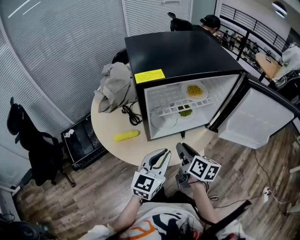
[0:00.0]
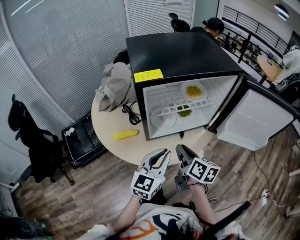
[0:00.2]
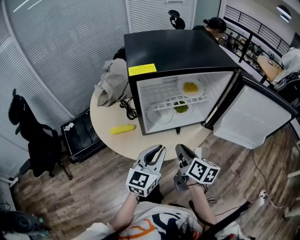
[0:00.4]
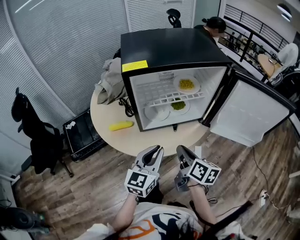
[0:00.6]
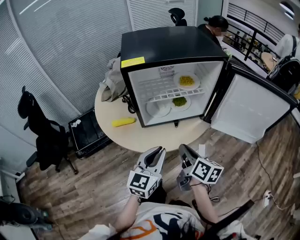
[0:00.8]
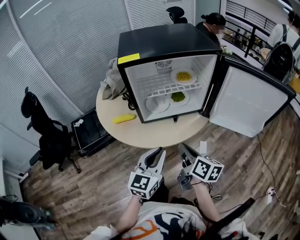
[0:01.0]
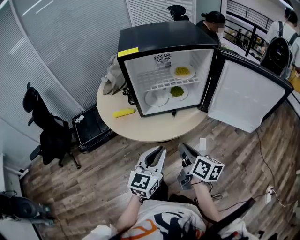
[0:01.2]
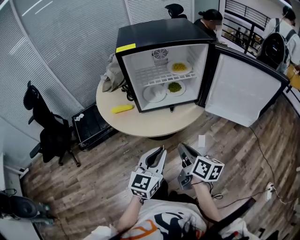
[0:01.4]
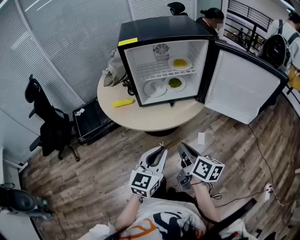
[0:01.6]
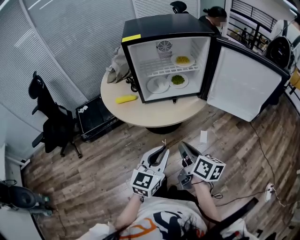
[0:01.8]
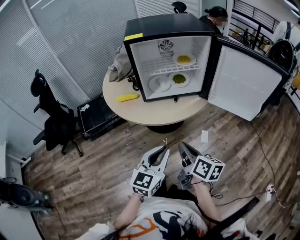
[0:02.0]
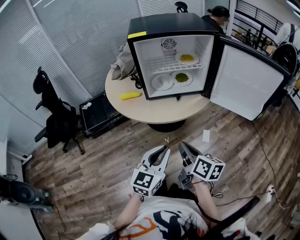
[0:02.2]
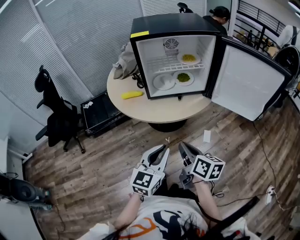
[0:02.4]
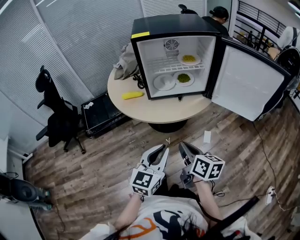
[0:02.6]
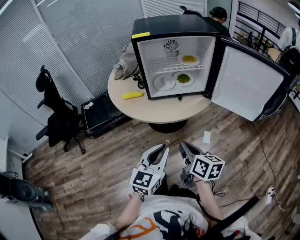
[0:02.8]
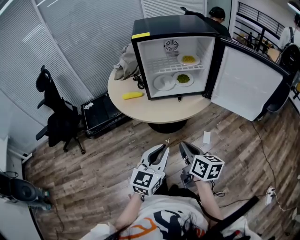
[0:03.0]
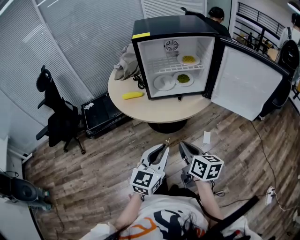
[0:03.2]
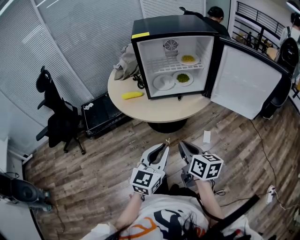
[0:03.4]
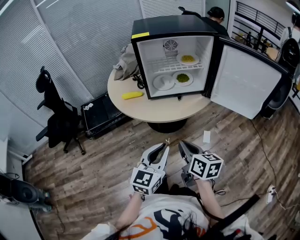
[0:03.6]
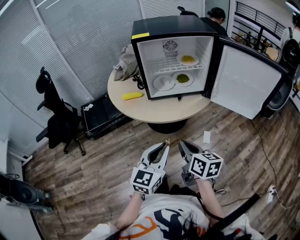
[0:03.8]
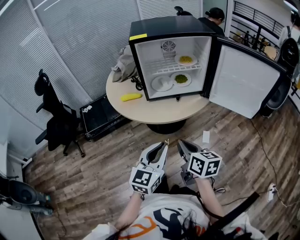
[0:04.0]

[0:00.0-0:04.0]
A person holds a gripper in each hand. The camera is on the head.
0:00.0 to 0:01.4: Both grippers move backward and to the right, roughly 20 cm.
0:01.4 to 0:02.6: Both grippers move backward, some 5 cm.
0:02.6 to 0:04.0: The grippers move only a little.

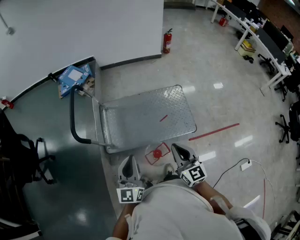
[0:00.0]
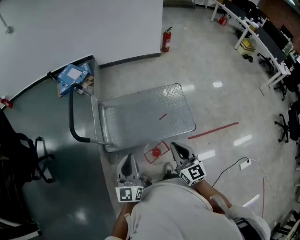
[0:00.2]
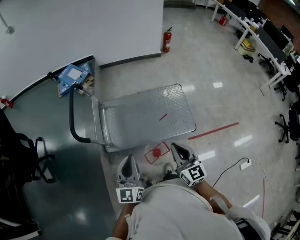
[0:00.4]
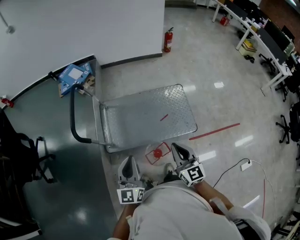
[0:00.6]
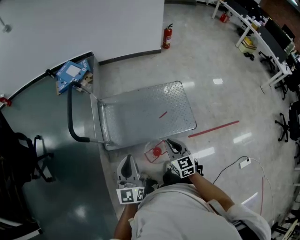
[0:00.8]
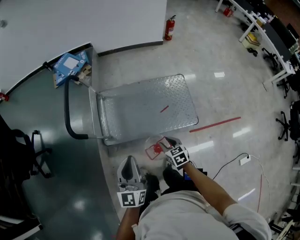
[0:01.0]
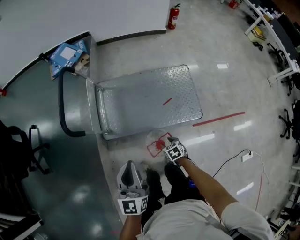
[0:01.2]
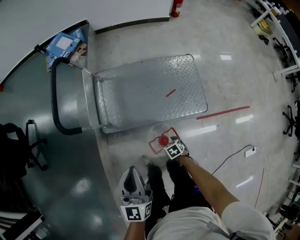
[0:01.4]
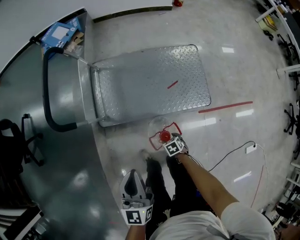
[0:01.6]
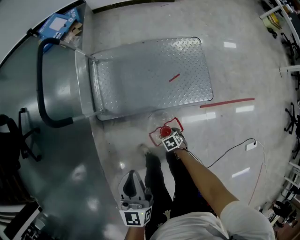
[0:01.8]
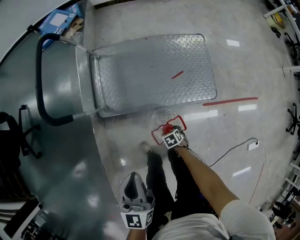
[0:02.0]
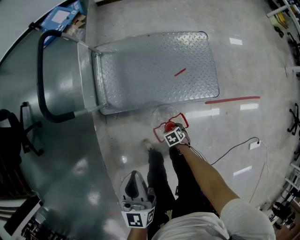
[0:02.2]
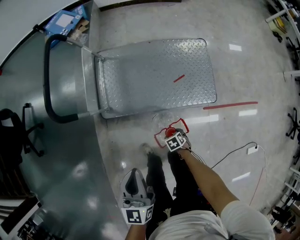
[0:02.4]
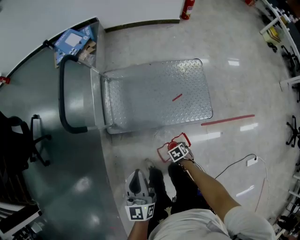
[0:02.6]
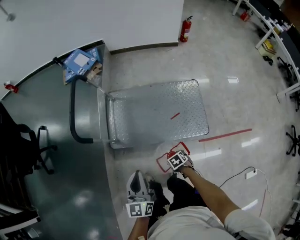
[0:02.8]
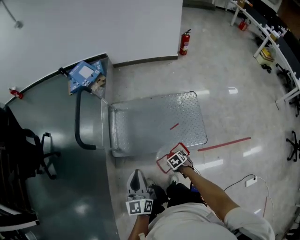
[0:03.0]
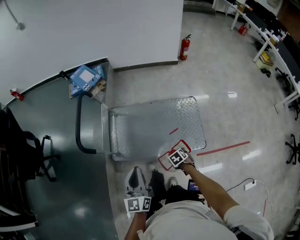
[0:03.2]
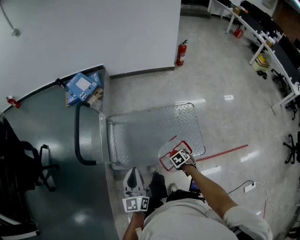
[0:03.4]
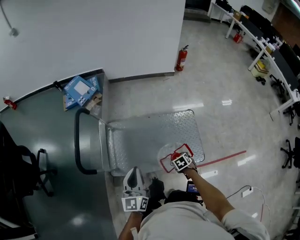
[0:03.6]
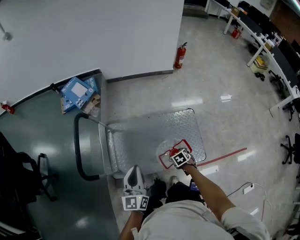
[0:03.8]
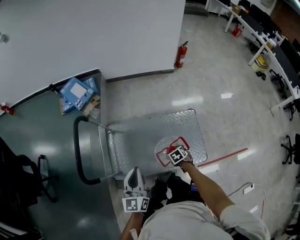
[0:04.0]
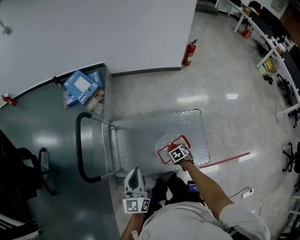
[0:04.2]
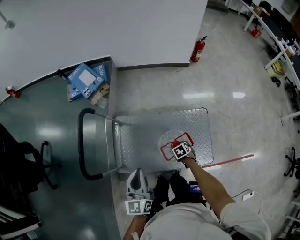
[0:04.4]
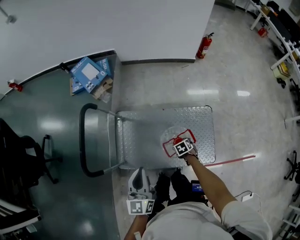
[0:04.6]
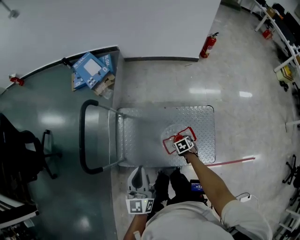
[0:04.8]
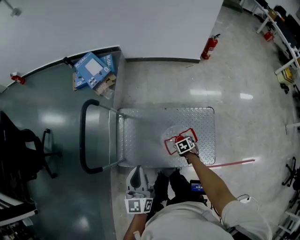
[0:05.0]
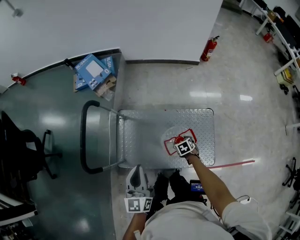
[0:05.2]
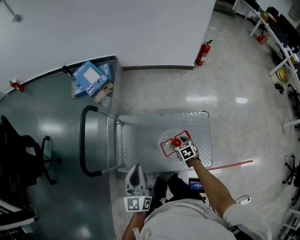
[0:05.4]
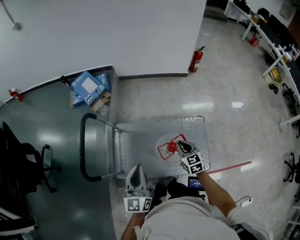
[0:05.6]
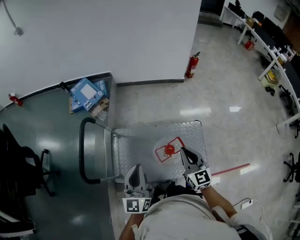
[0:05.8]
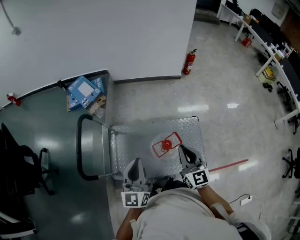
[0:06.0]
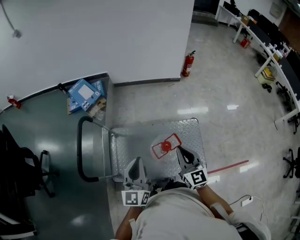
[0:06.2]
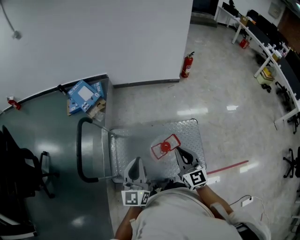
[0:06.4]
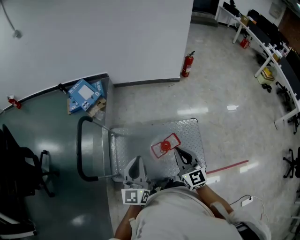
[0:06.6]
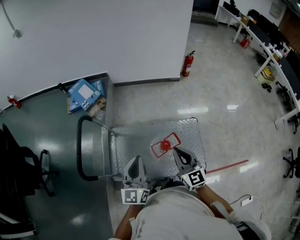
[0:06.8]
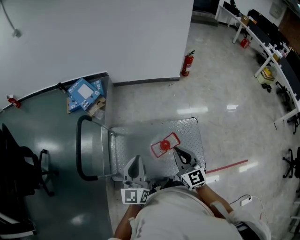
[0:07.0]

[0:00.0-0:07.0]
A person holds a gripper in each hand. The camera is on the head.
0:00.0 to 0:01.4: The left gripper moves downward, about 10 cm. Meanwhile the right gripper goes about 50 cm downward, tips its fingers downward by roughly 60 degrees, and opens.
0:01.4 to 0:02.8: The right gripper shifts some 10 cm upward.
0:02.8 to 0:04.2: The left gripper ends up some 25 cm from where it was; the right gripper moves about 35 cm.
0:04.2 to 0:05.6: The right gripper is displaced upward by some 20 cm, tilts its fingers about 40 degrees upward, and closes up. Meanwhile the left gripper shifts by roughly 5 cm.
0:05.6 to 0:07.0: The left gripper changes place by about 5 cm; the right gripper heads upward and backward, covering about 15 cm, and changes its angle by approximately 30 degrees.

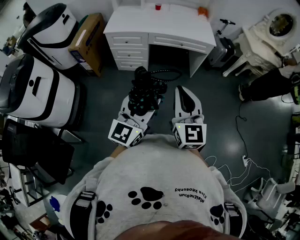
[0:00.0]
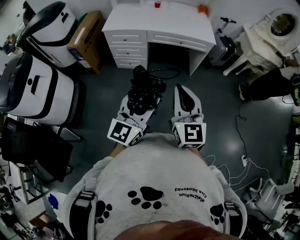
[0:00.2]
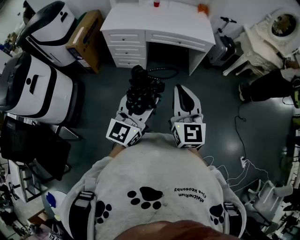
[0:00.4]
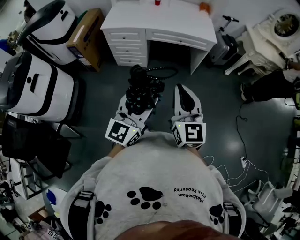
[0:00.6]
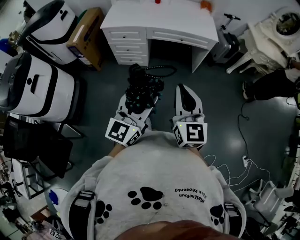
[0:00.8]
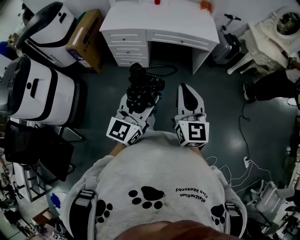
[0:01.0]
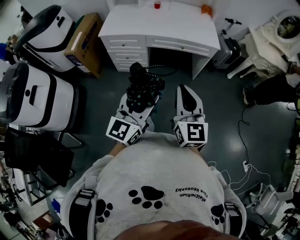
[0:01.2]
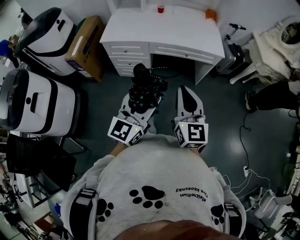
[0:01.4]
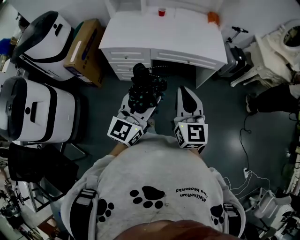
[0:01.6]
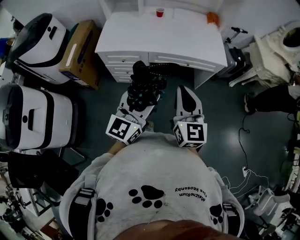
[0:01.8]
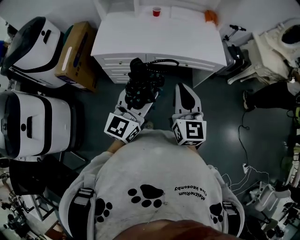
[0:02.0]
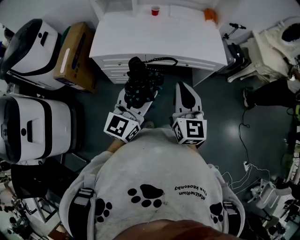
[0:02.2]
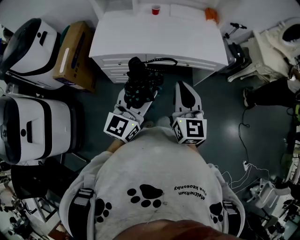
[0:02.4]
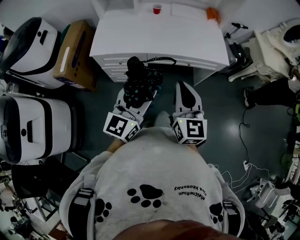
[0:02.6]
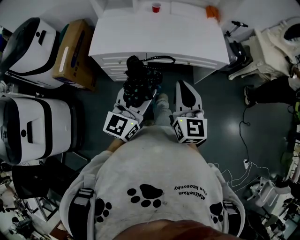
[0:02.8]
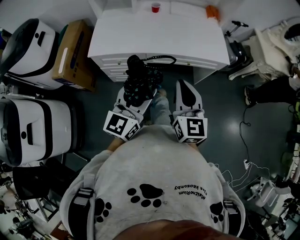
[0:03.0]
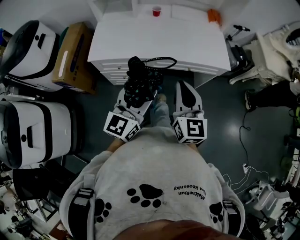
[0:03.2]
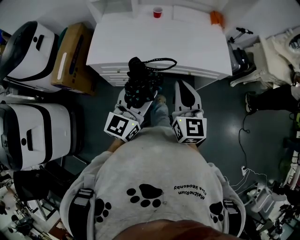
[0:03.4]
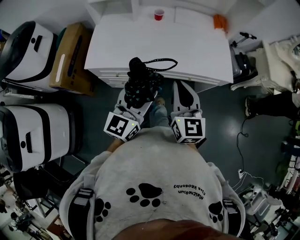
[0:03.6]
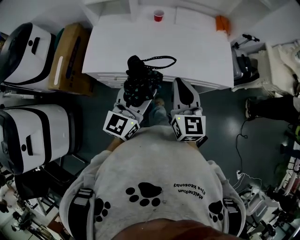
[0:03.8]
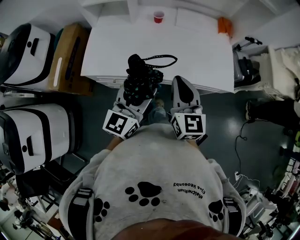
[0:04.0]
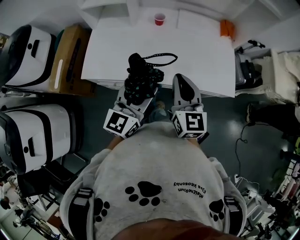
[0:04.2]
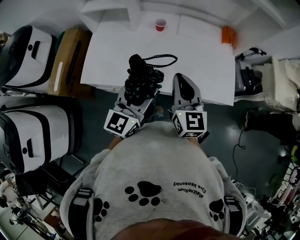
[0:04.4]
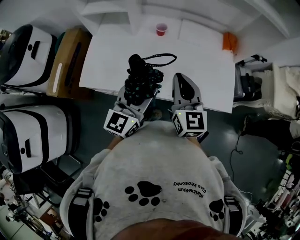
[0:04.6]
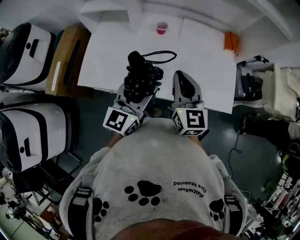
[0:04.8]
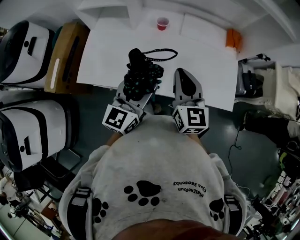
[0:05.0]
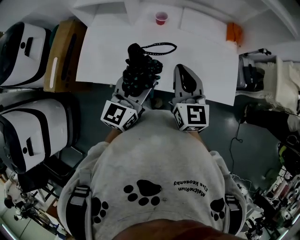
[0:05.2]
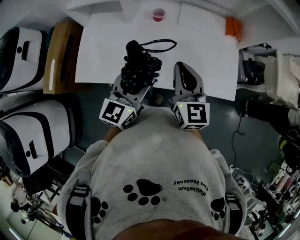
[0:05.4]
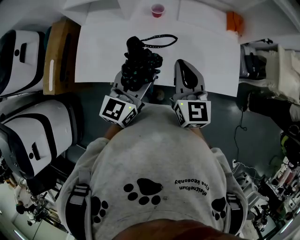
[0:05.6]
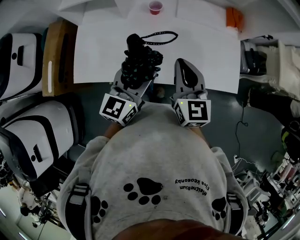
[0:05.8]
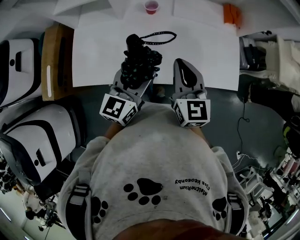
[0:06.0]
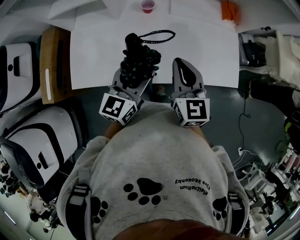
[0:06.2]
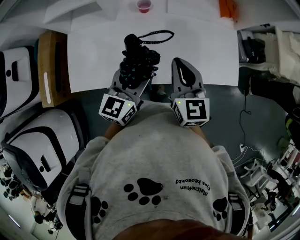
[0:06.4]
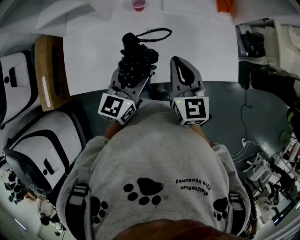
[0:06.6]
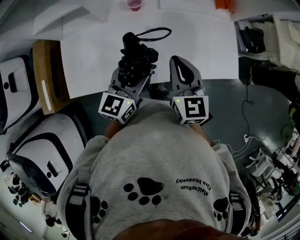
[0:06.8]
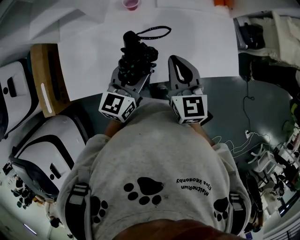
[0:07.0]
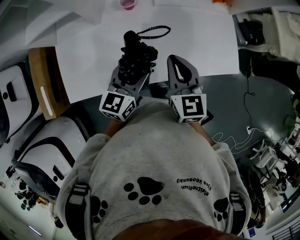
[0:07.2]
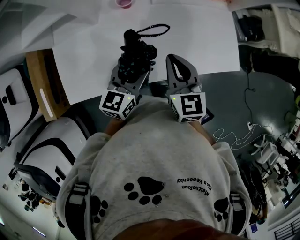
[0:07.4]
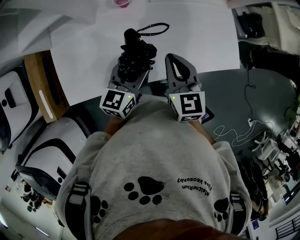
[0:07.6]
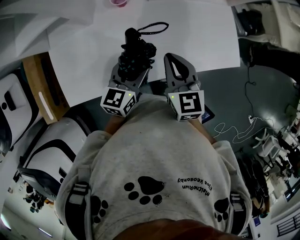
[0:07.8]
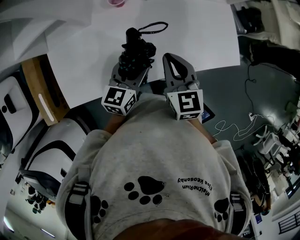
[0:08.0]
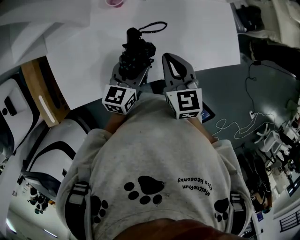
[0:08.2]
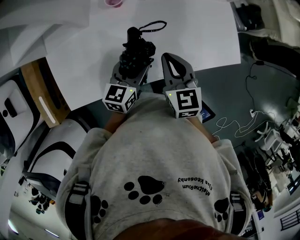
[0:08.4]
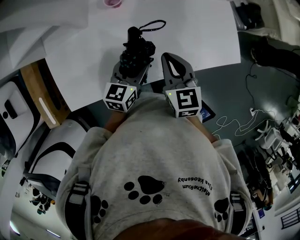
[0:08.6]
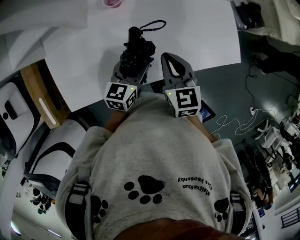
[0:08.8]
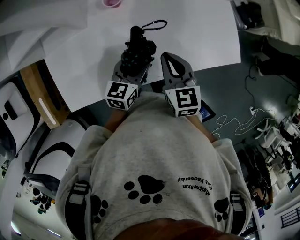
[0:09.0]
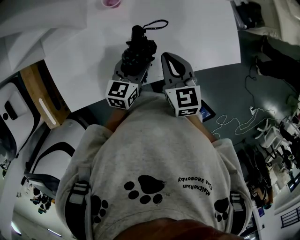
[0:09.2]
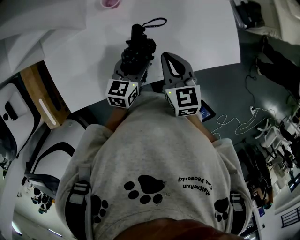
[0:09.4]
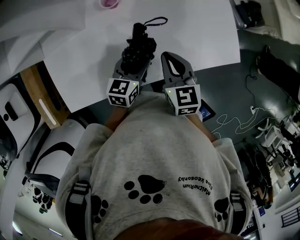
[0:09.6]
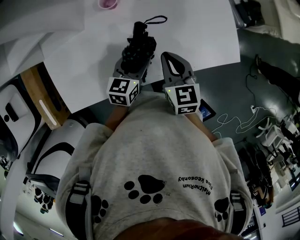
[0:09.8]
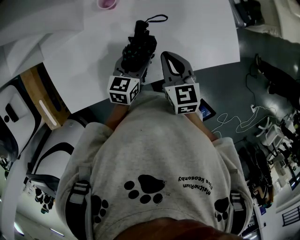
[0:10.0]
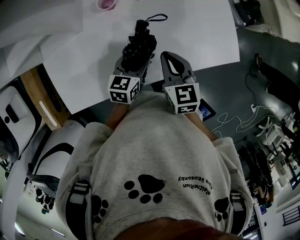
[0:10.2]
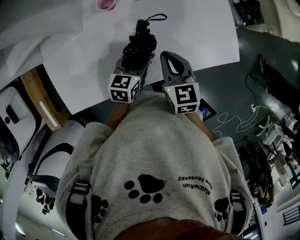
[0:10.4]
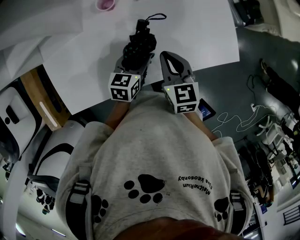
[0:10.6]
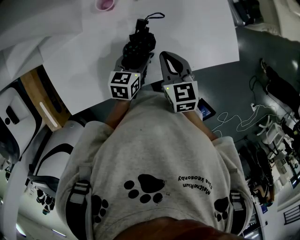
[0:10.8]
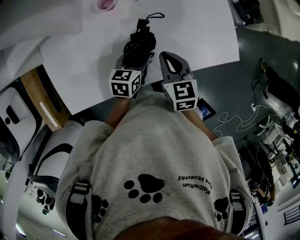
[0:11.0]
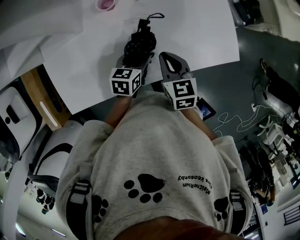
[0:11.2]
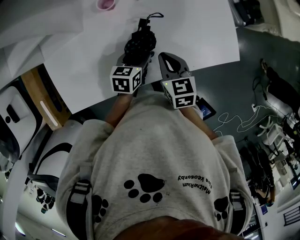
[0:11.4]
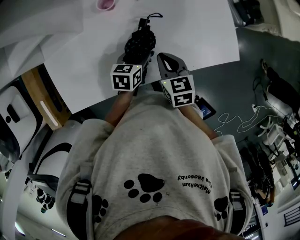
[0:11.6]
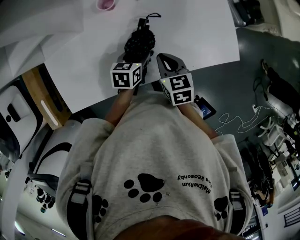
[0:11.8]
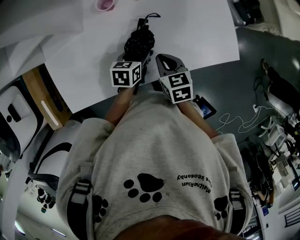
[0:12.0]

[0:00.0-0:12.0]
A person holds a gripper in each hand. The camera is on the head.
0:00.0 to 0:01.6: The two grippers go about 25 cm forward.
0:01.6 to 0:03.0: Both grippers move forward and to the left, some 15 cm.
0:03.0 to 0:04.4: The two grippers go approximately 30 cm forward.
0:04.4 to 0:06.0: The left gripper goes approximately 15 cm forward and downward; the right gripper shifts approximately 10 cm forward.
0:06.0 to 0:07.6: The right gripper moves downward, roughly 10 cm. The left gripper heads downward and forward, covering approximately 10 cm.
0:07.6 to 0:09.0: The left gripper goes roughly 5 cm downward.
0:09.0 to 0:10.4: There are only small adjustments of the grippers.
0:10.4 to 0:12.0: The right gripper goes about 5 cm downward.

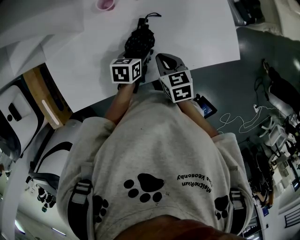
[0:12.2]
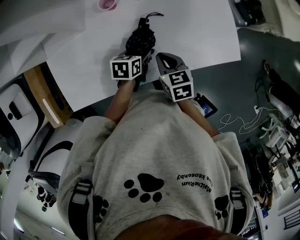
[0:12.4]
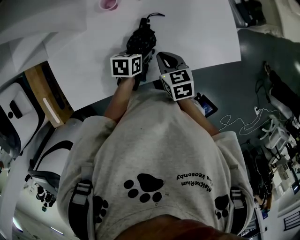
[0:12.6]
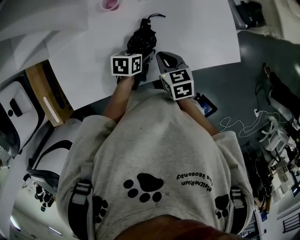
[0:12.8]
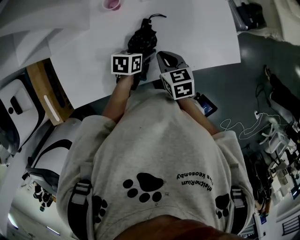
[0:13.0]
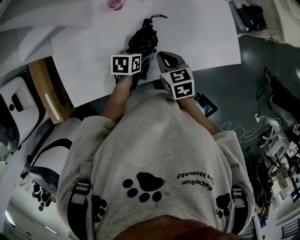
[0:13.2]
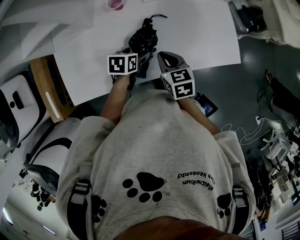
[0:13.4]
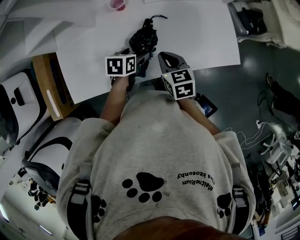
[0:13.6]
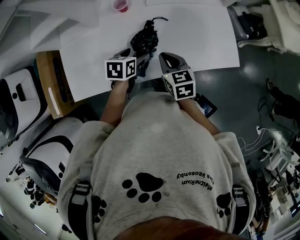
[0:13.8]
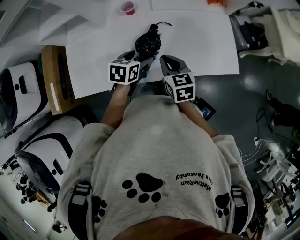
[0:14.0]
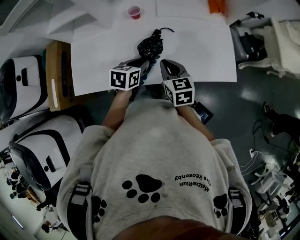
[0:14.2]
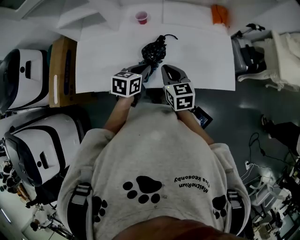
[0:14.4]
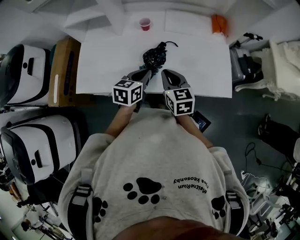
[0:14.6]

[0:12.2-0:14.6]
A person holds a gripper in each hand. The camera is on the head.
0:12.2 to 0:13.4: The grippers make only small movements.
0:13.4 to 0:14.6: The grippers both shift upward and backward by some 15 cm. The left gripper rotates roughly 30 degrees, and closes; the right gripper turns by roughly 20 degrees.
